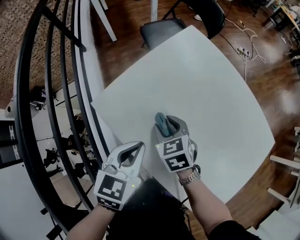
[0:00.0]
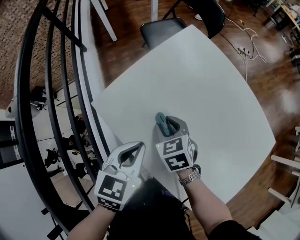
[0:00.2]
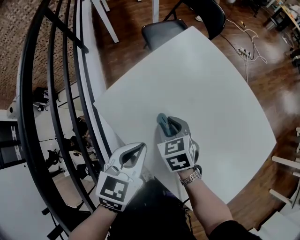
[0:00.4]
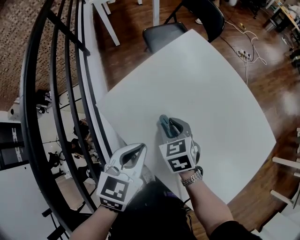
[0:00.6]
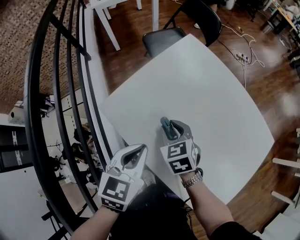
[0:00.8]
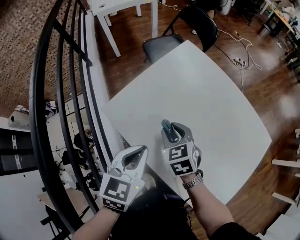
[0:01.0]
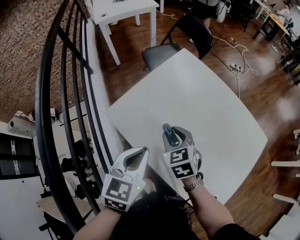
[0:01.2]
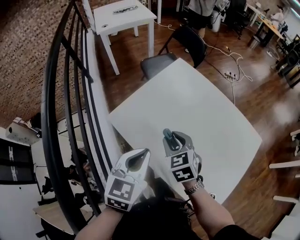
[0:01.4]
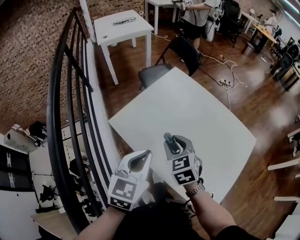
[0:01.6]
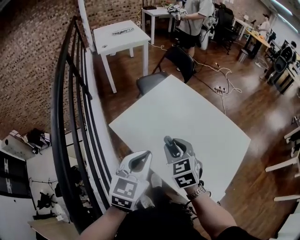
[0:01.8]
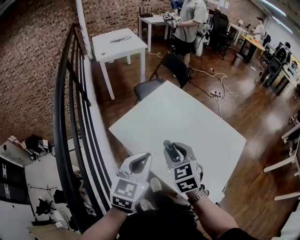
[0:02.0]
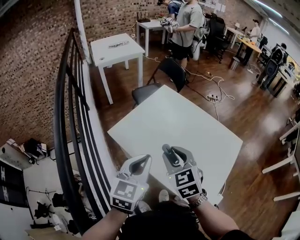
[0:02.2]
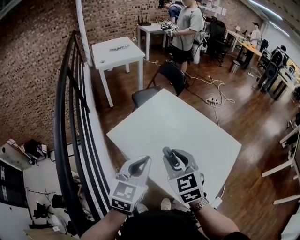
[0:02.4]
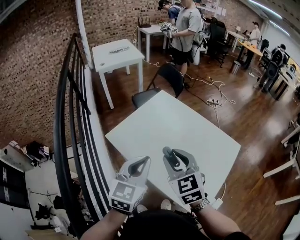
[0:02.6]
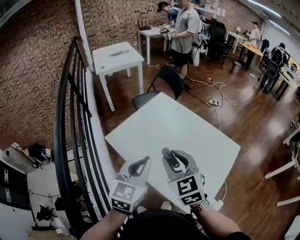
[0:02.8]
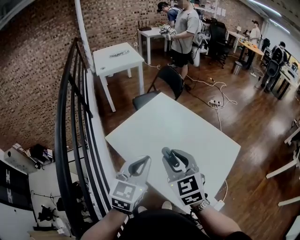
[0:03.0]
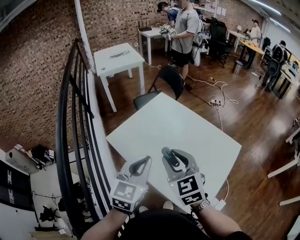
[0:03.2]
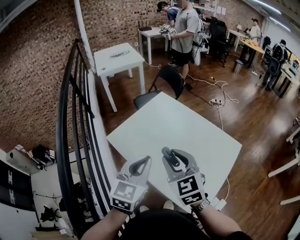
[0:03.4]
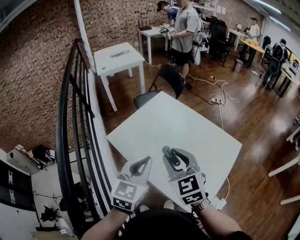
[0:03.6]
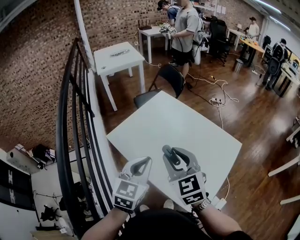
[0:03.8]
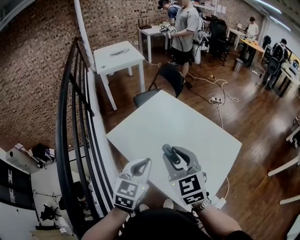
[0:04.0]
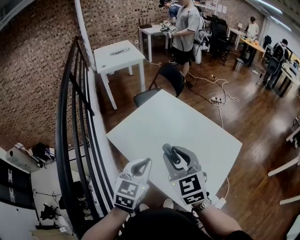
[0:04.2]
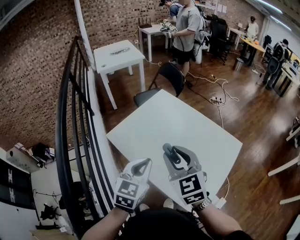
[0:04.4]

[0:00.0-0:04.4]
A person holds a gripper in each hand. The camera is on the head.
0:00.0 to 0:01.4: The left gripper goes some 10 cm upward, while the right gripper travels upward and backward by approximately 10 cm.
0:01.4 to 0:03.0: The left gripper heads upward, to the right and backward, covering some 15 cm; the right gripper is displaced upward, backward and to the right by about 25 cm, and turns by some 20 degrees.
0:03.0 to 0:04.4: The grippers move only a little.

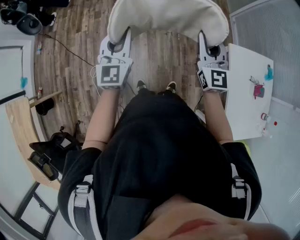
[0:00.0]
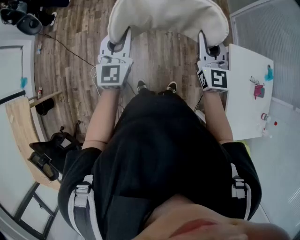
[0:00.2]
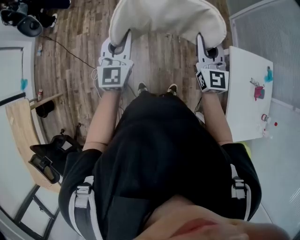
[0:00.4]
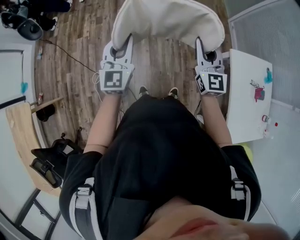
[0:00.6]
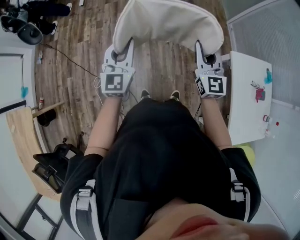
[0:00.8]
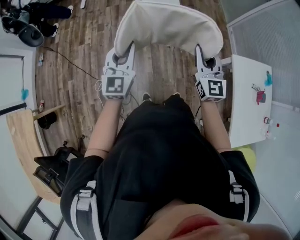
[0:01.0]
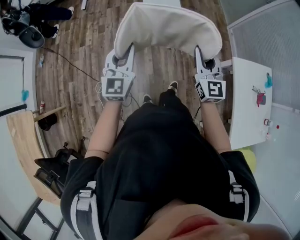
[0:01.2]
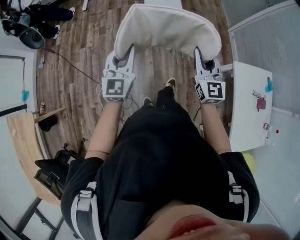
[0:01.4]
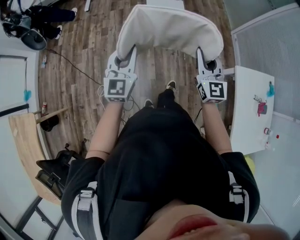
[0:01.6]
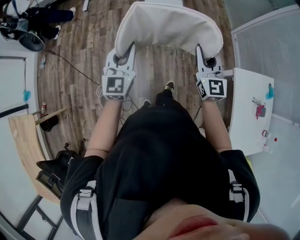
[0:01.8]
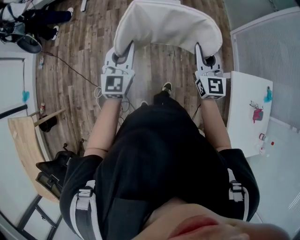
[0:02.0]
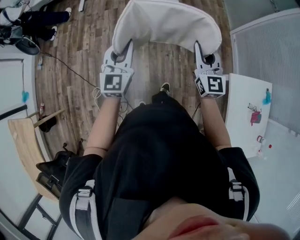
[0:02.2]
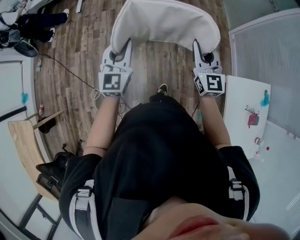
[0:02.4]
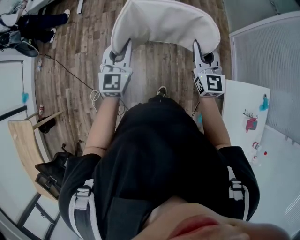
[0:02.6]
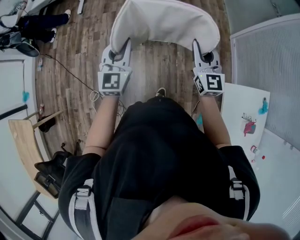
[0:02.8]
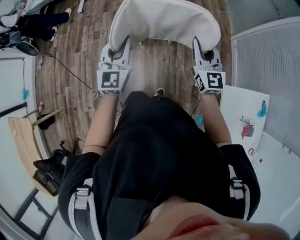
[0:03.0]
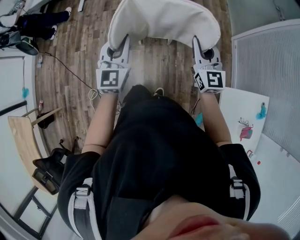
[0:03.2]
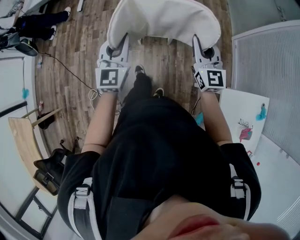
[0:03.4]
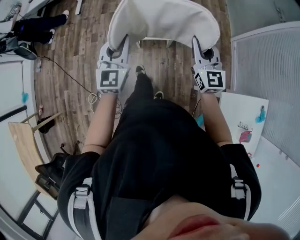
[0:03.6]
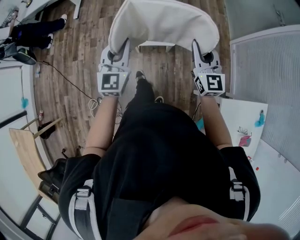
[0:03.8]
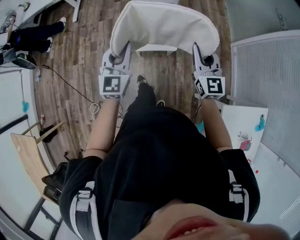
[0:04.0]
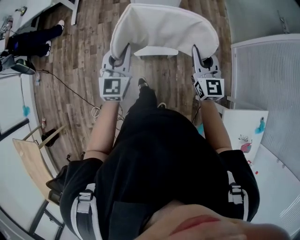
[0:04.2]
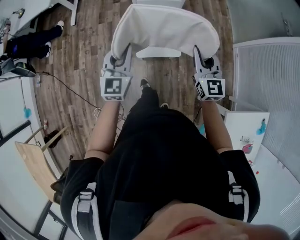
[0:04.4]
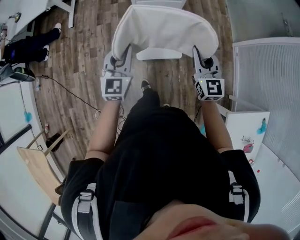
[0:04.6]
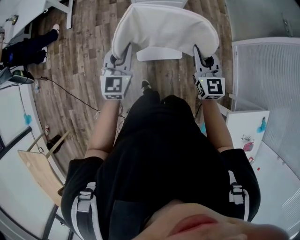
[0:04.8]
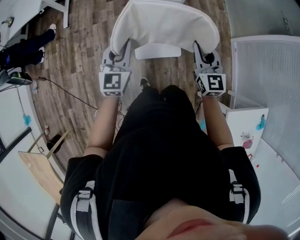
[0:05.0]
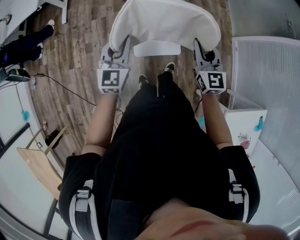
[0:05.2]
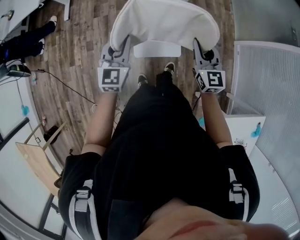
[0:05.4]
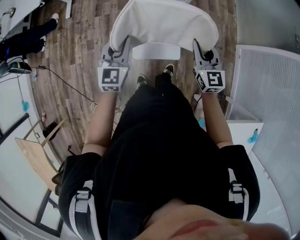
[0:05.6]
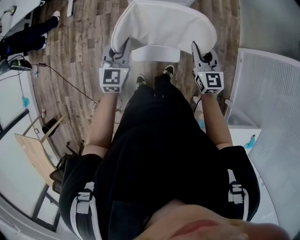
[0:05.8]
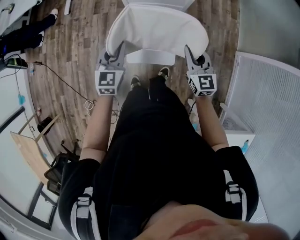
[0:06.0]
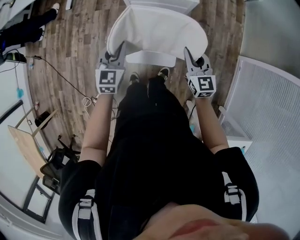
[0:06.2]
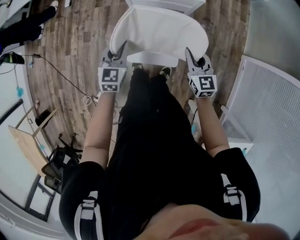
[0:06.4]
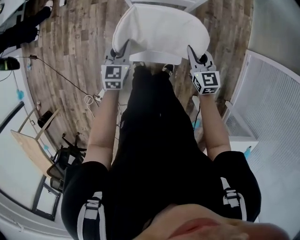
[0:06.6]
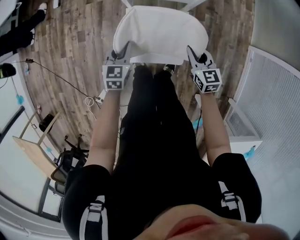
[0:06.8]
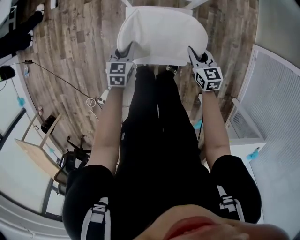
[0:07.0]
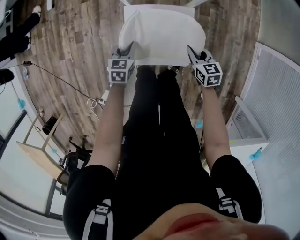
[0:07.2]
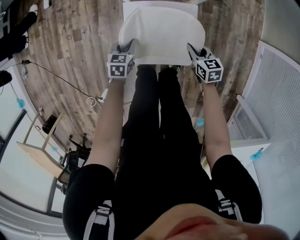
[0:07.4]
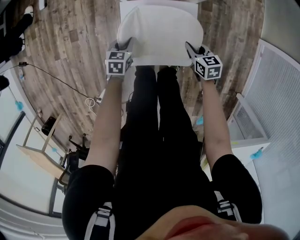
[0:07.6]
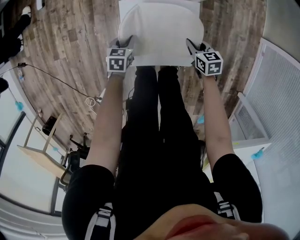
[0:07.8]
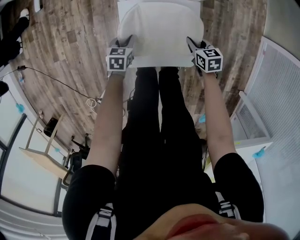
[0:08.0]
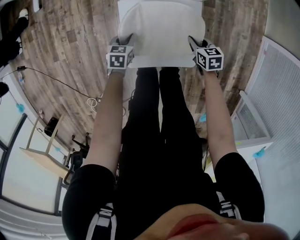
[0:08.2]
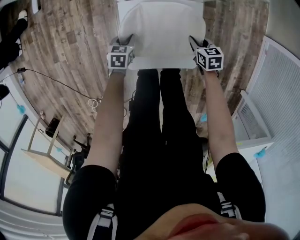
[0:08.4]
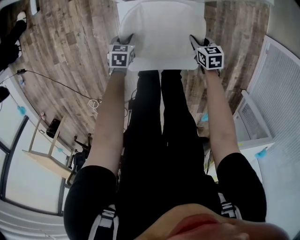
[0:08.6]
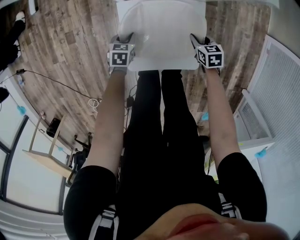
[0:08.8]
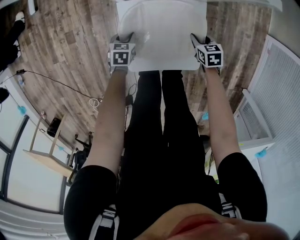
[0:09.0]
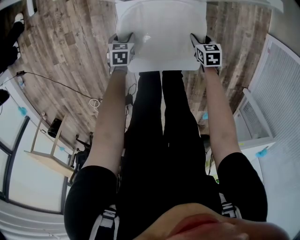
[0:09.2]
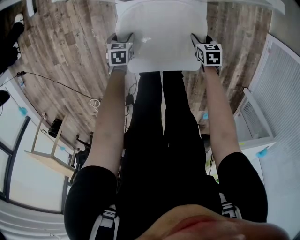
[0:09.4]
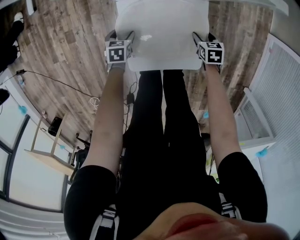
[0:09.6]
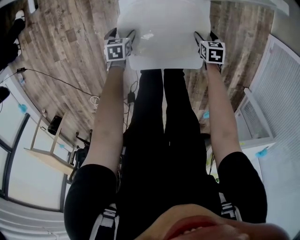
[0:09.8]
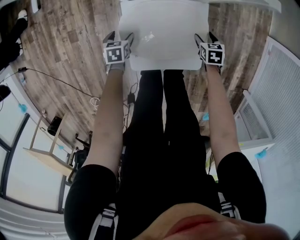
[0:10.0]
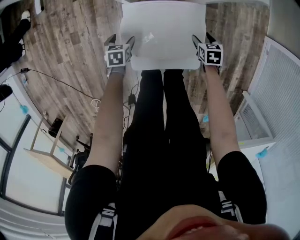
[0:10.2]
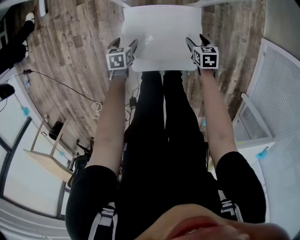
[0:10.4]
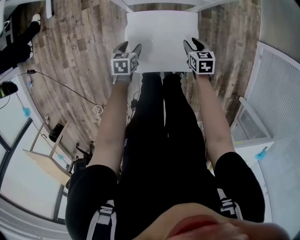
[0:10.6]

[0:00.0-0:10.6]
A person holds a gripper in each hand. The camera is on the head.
0:00.0 to 0:01.6: Both grippers move to the left and forward, approximately 10 cm.
0:01.6 to 0:03.0: Both grippers move forward and to the right, approximately 25 cm.
0:03.0 to 0:04.6: The two grippers go some 30 cm forward.
0:04.6 to 0:06.0: The two grippers go about 20 cm forward and downward.
0:06.0 to 0:07.6: The two grippers go about 50 cm downward. The left gripper tilts its fingers some 30 degrees downward; the right gripper rotates about 40 degrees.
0:07.6 to 0:09.0: Both grippers travel together downward, some 10 cm.
0:09.0 to 0:10.6: The grippers both shift upward by roughly 15 cm. The right gripper opens, then closes once more; the left gripper opens its fingers.

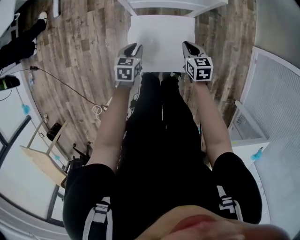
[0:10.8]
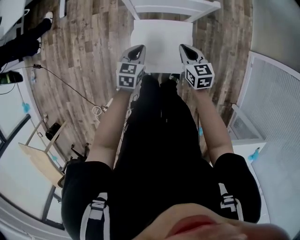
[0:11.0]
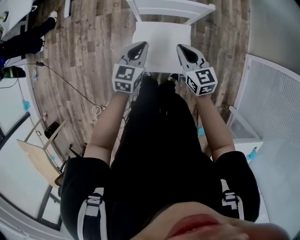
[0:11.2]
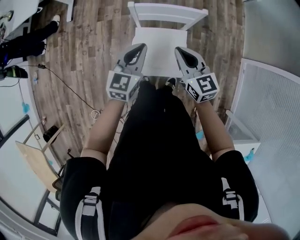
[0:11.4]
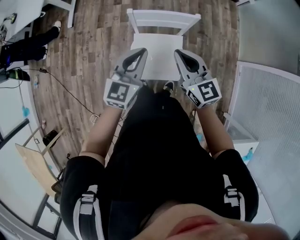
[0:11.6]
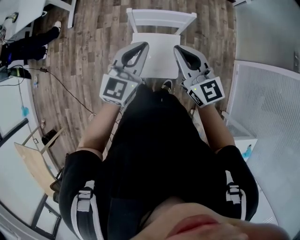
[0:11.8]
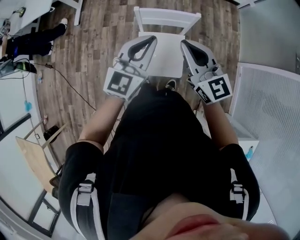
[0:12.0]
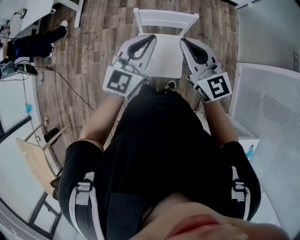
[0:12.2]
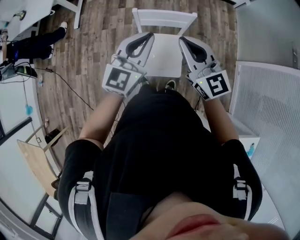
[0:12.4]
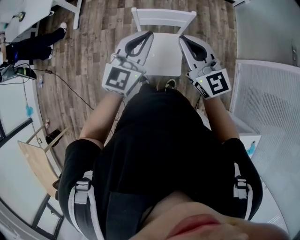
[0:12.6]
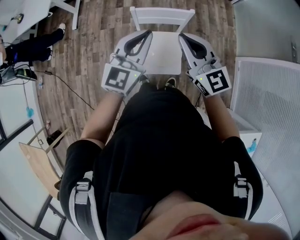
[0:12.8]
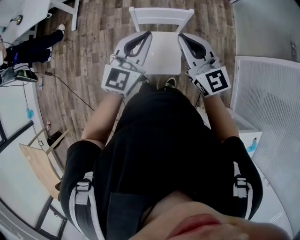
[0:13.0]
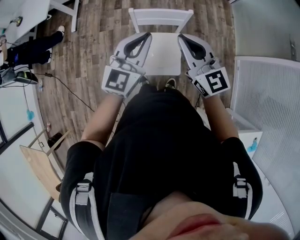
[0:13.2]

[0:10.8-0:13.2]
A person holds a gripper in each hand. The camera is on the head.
0:10.8 to 0:12.0: The two grippers go about 50 cm upward. The right gripper tilts its fingers about 40 degrees upward. The left gripper points its fingers approximately 50 degrees further upward.
0:12.0 to 0:13.2: There are only small adjustments of the grippers.

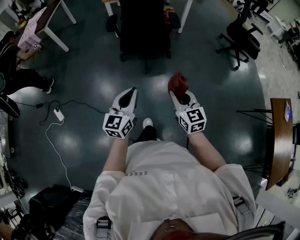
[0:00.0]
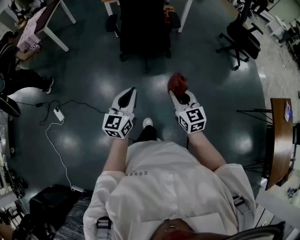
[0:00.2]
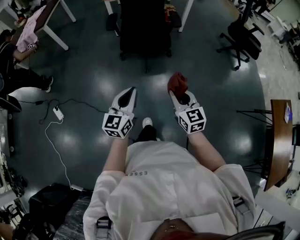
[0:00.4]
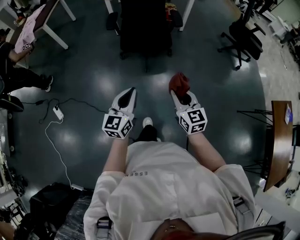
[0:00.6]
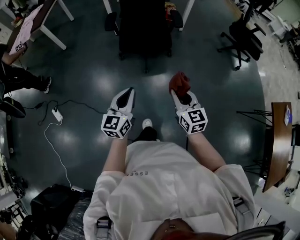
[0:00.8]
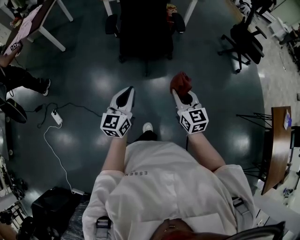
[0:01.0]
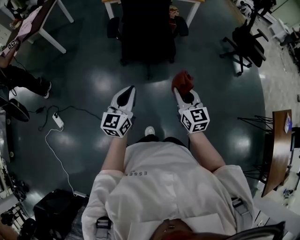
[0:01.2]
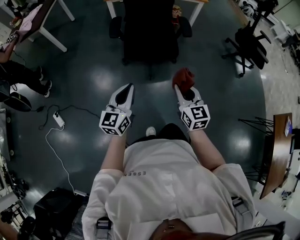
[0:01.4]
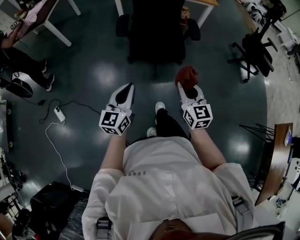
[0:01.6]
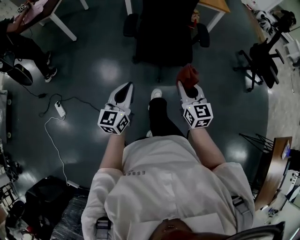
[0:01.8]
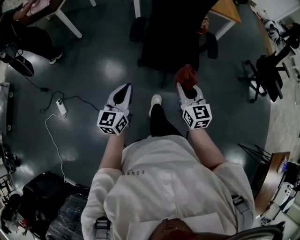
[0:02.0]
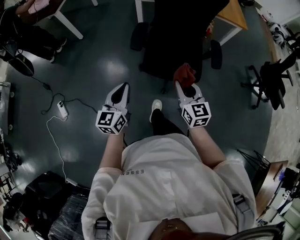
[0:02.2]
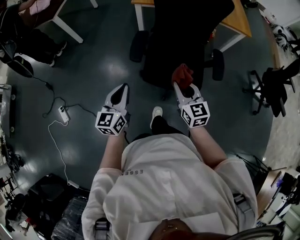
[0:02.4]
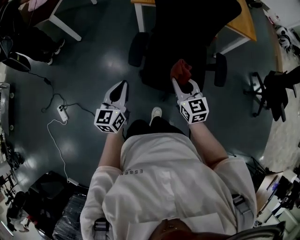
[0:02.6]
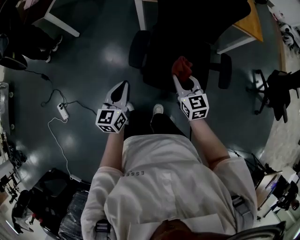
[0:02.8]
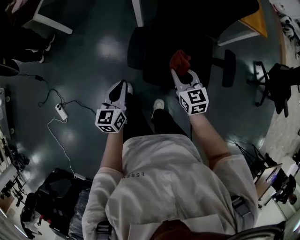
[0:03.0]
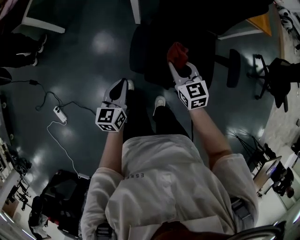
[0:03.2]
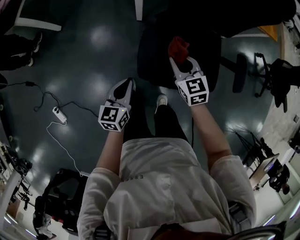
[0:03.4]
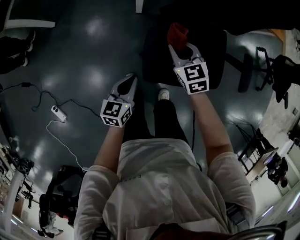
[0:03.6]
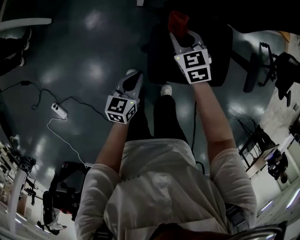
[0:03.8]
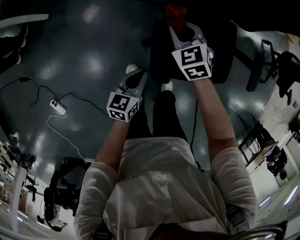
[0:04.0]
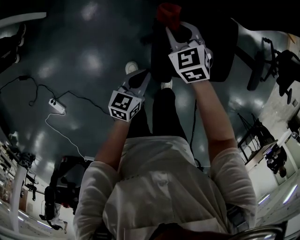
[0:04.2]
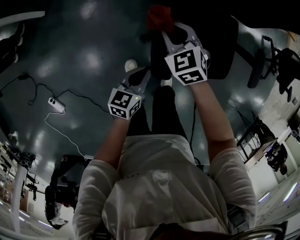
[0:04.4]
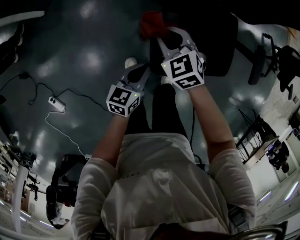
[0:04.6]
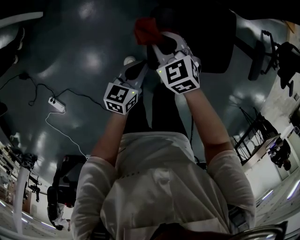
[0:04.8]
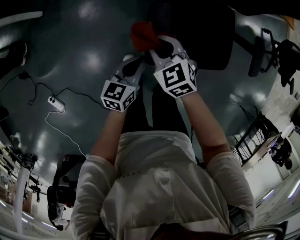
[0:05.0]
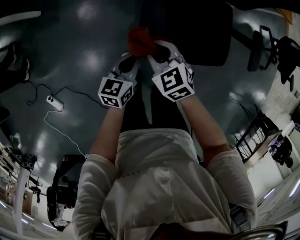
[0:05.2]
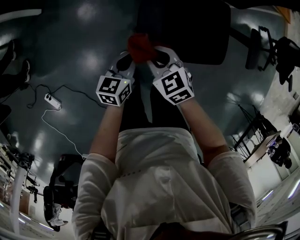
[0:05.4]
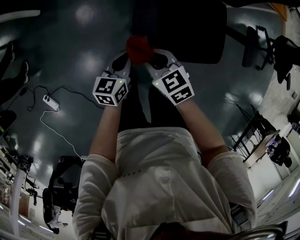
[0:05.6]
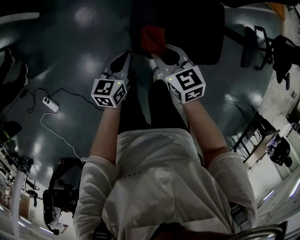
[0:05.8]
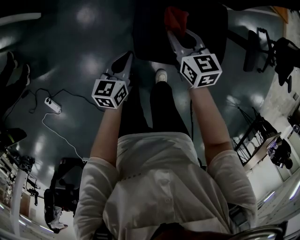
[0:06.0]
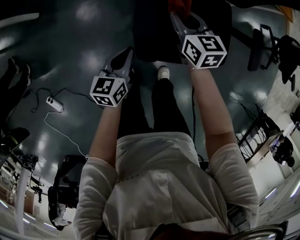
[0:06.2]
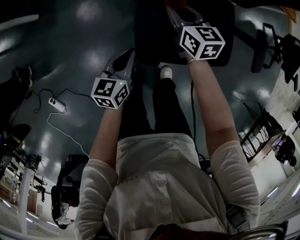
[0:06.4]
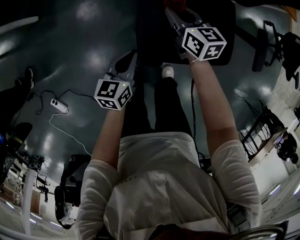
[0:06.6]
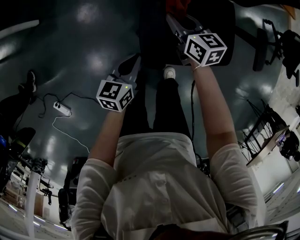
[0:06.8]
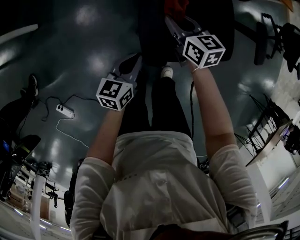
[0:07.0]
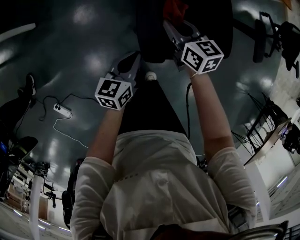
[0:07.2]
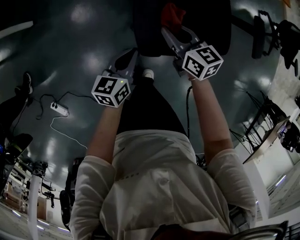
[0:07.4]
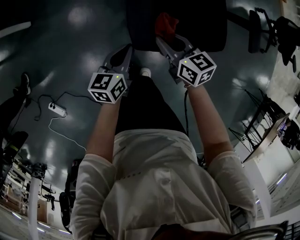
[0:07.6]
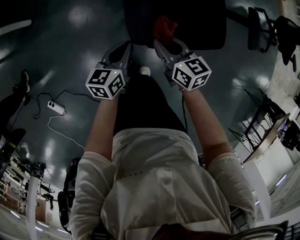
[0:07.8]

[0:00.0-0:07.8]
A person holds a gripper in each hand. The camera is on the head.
0:00.0 to 0:01.6: The left gripper travels forward and to the left by about 20 cm; the right gripper moves forward, approximately 20 cm.
0:01.6 to 0:03.2: The two grippers travel together, forward, some 40 cm. The left gripper travels downward by roughly 20 cm, and swivels roughly 20 degrees; the right gripper rotates approximately 20 degrees.
0:03.2 to 0:04.6: The left gripper shifts some 15 cm downward and forward, and turns by roughly 30 degrees; the right gripper goes some 20 cm to the left, downward and forward, and changes its angle by roughly 30 degrees.
0:04.6 to 0:06.2: The right gripper moves to the right, some 10 cm, moves roughly 15 cm backward and comes back, and changes its angle by roughly 40 degrees.
0:06.2 to 0:07.8: The right gripper heads backward, covering roughly 15 cm.
